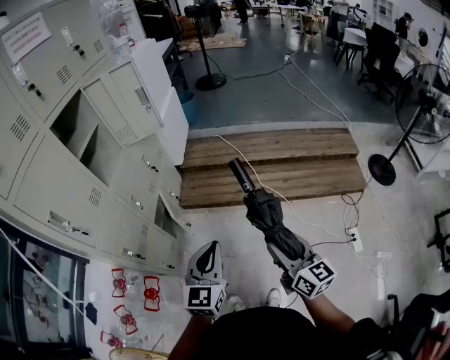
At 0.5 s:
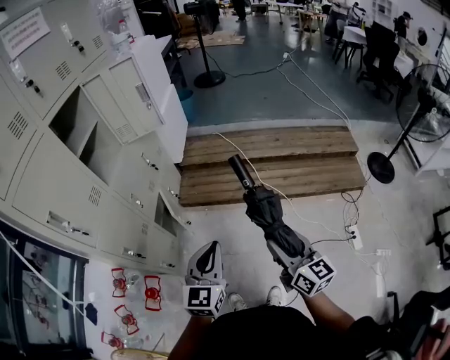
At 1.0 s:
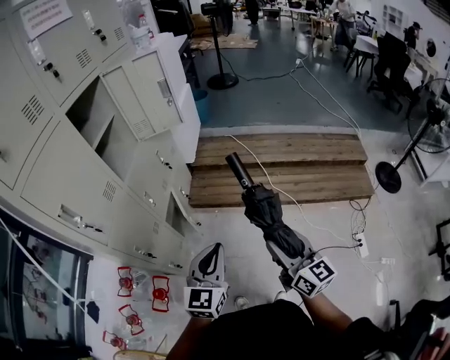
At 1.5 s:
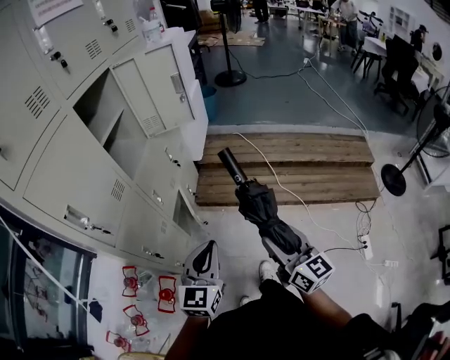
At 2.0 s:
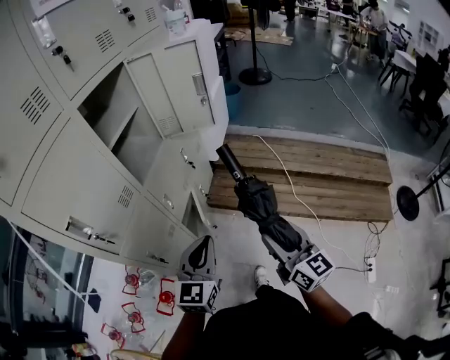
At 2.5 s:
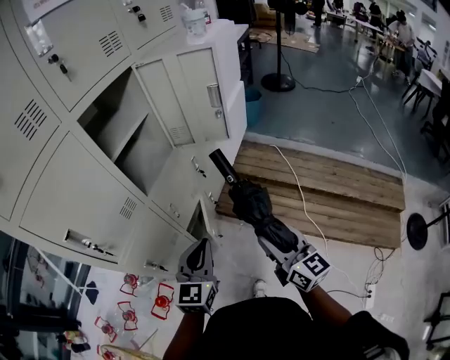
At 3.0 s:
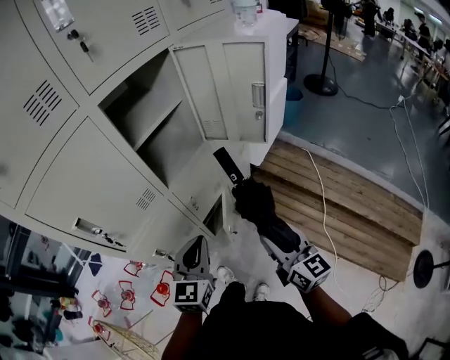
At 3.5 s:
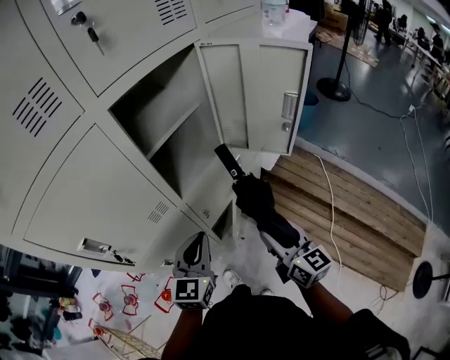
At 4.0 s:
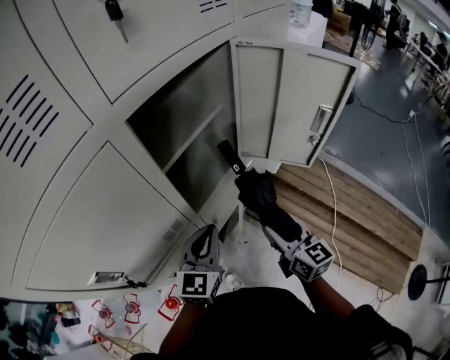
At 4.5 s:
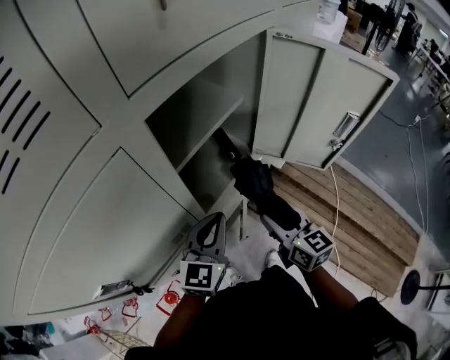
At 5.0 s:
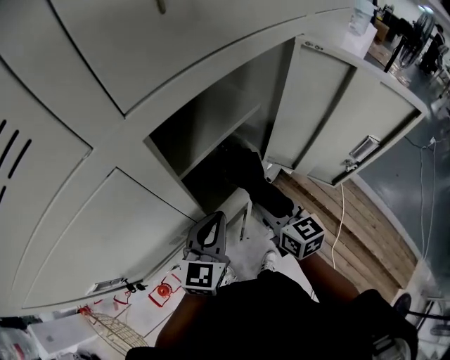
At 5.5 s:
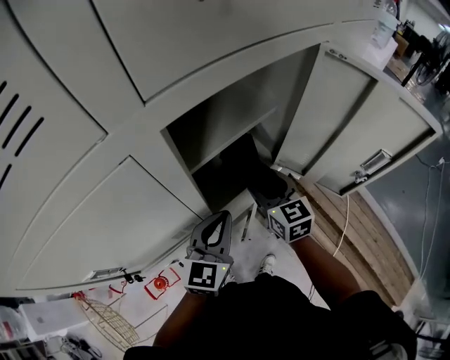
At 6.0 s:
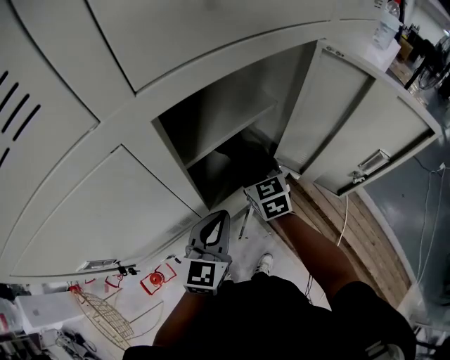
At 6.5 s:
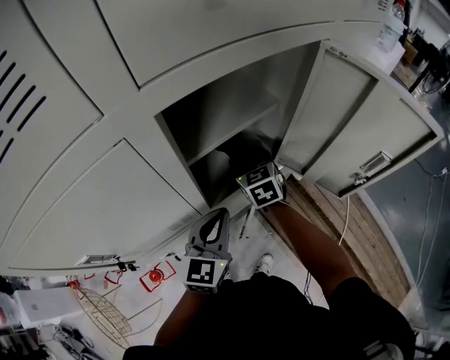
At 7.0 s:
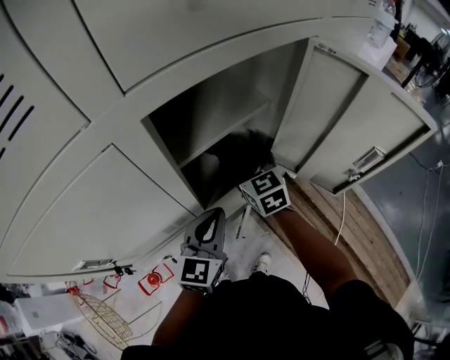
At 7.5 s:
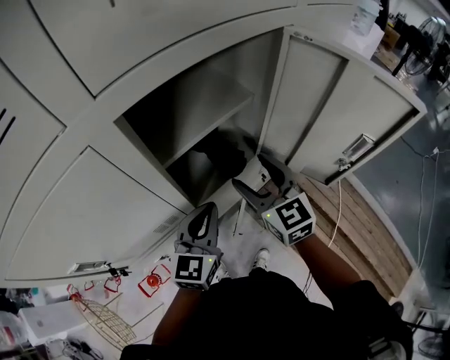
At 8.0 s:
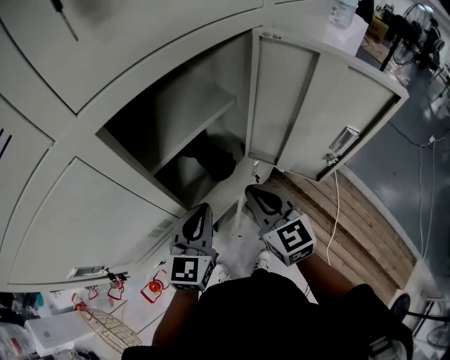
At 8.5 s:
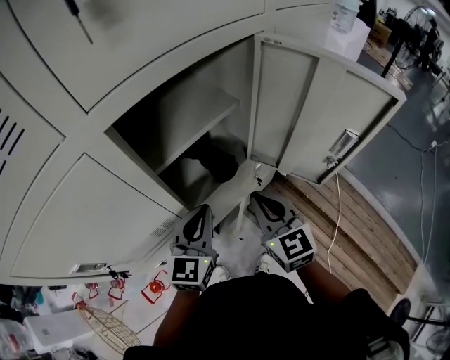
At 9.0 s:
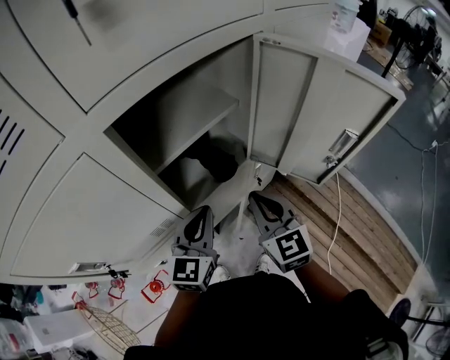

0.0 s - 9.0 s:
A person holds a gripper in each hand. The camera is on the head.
0.0 s - 2.0 s: The left gripper is displaced to the left and forward by roughly 20 cm. The right gripper travels forward and to the left by about 25 cm.
2.0 s - 4.5 s: Both grippers move forward, about 35 cm. The right gripper swivels roughly 30 degrees.
4.5 s - 7.0 s: The right gripper goes about 20 cm forward and to the left, rotates about 30 degrees, and opens.
7.0 s - 9.0 s: The right gripper moves backward and to the right, approximately 15 cm, and closes its fingers.

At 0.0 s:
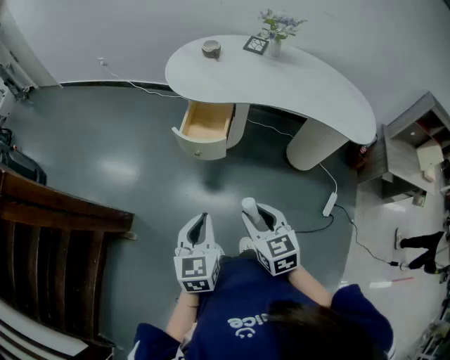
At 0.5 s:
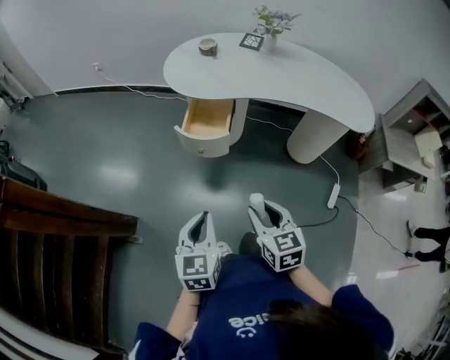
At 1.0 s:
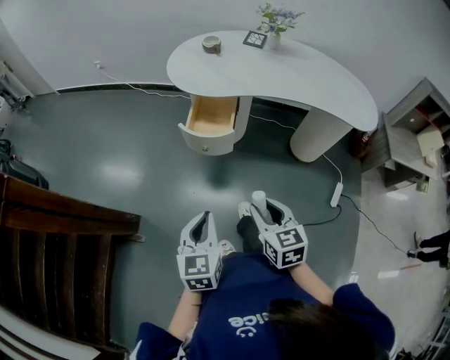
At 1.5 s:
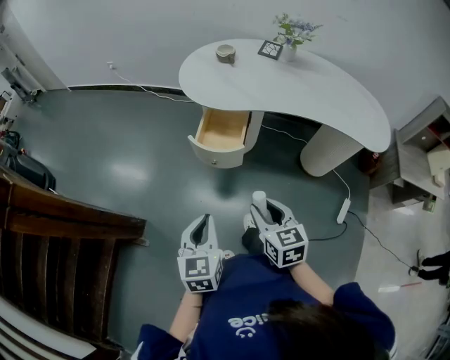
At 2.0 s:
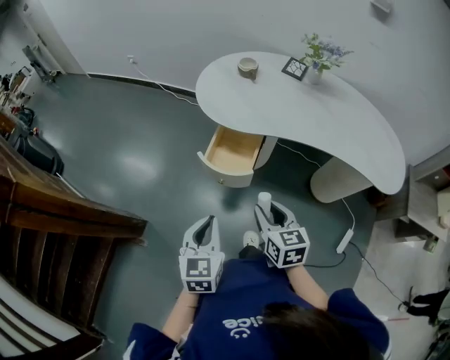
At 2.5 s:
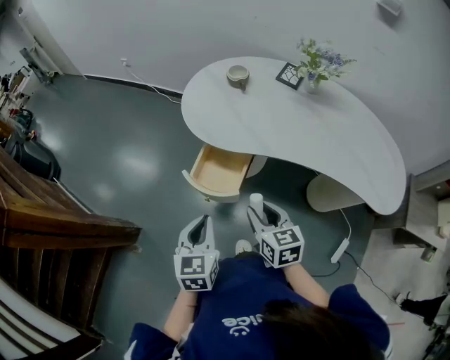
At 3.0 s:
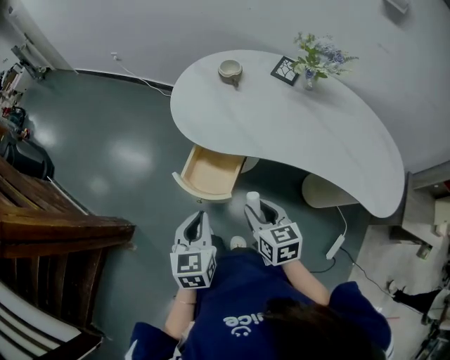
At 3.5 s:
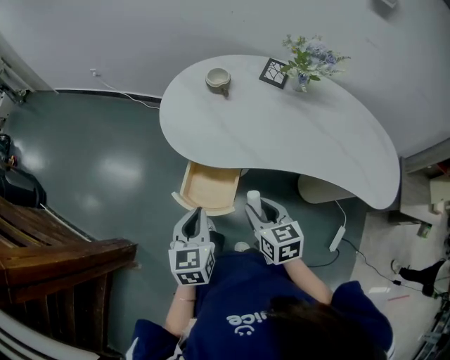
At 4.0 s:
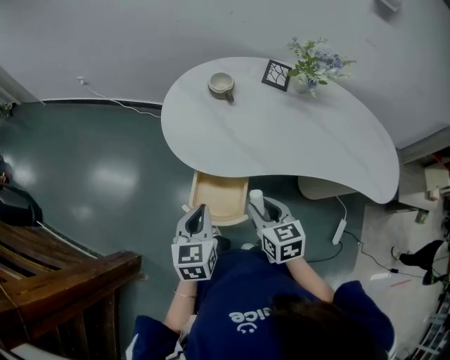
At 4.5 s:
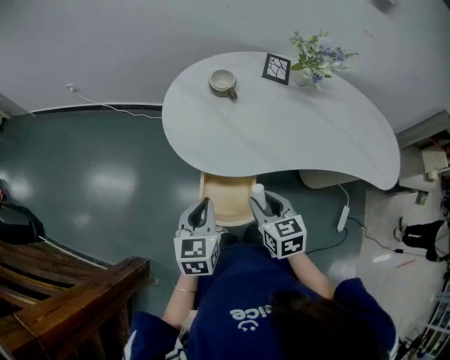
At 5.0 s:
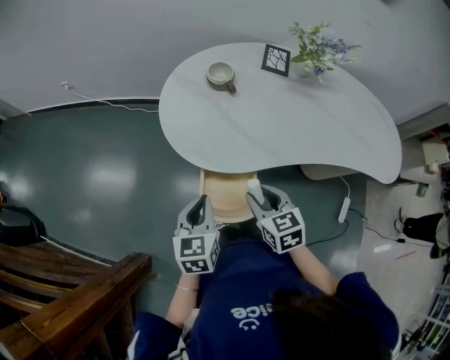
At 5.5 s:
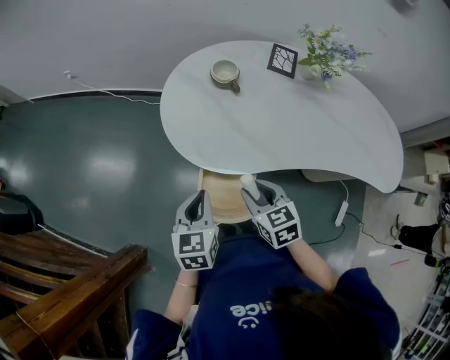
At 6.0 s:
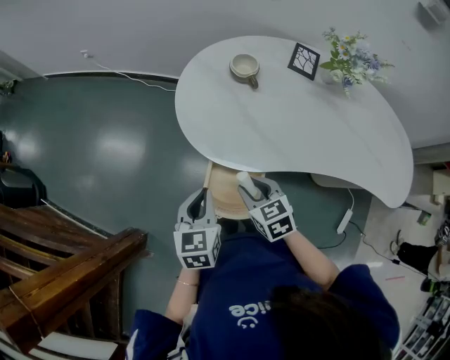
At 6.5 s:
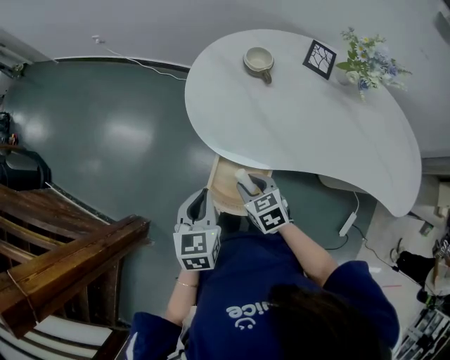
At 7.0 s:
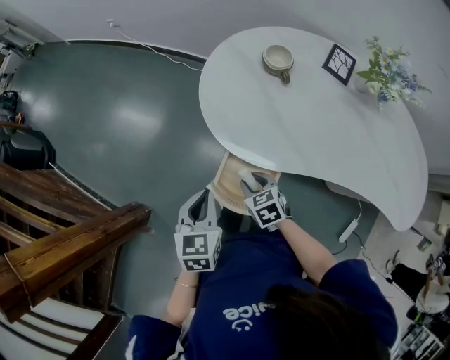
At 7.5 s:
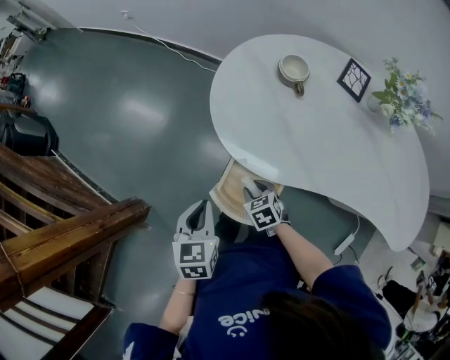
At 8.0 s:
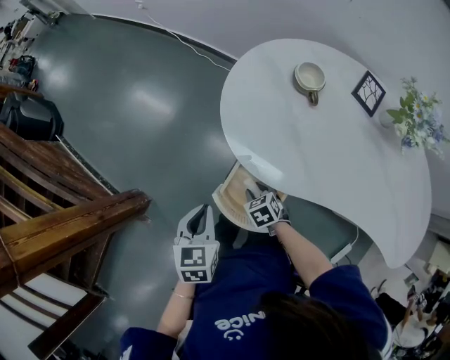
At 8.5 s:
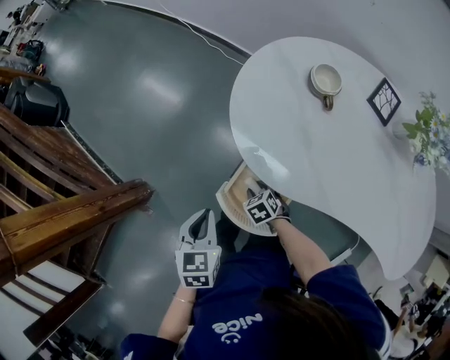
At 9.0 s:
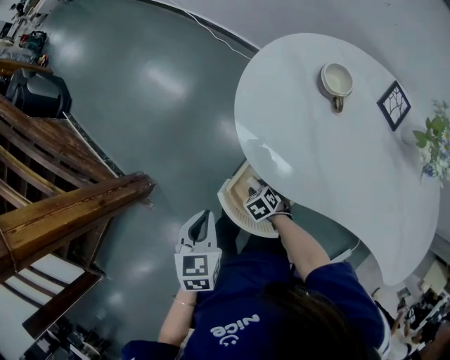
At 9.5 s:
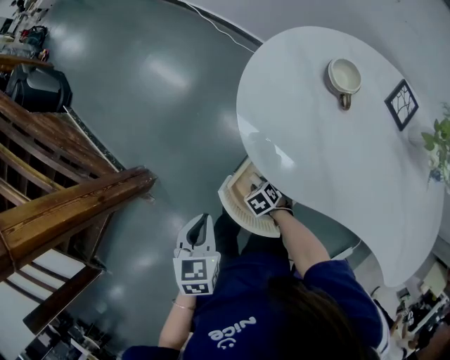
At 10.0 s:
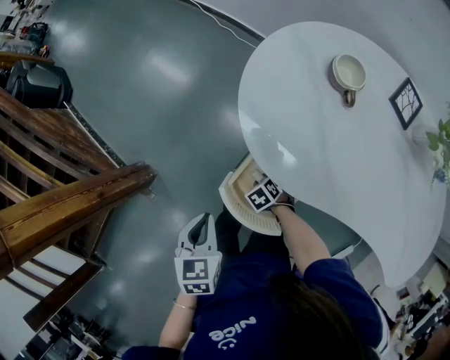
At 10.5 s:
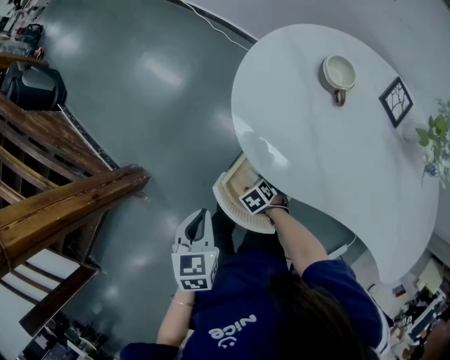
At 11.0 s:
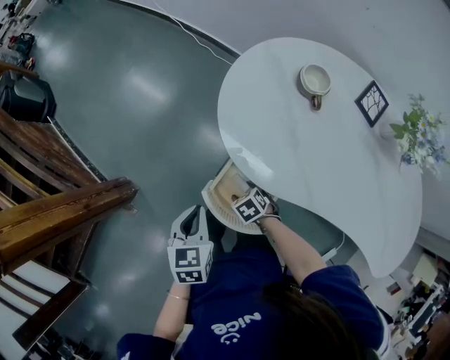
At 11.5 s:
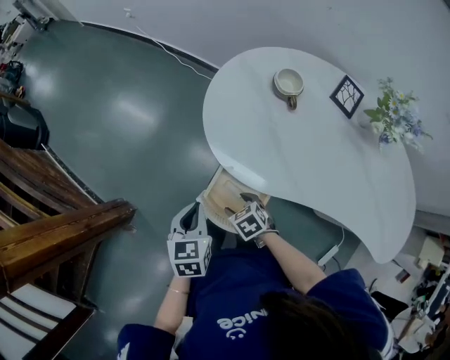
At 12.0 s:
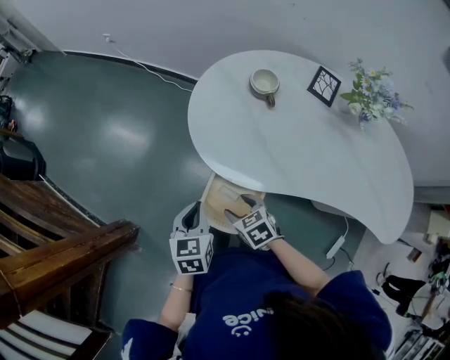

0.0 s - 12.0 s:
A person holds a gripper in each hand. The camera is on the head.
0.0 s - 2.0 s: The two grippers go approximately 15 cm forward.
2.0 s - 4.0 s: Both grippers move forward, roughly 25 cm.
4.0 s - 6.0 s: The right gripper shifts roughly 10 cm to the left and forward. Meanwhile the left gripper moves forward, some 5 cm.
6.0 s - 8.0 s: The right gripper travels downward by approximately 15 cm, and changes its angle by approximately 30 degrees. The left gripper shifts some 5 cm to the left.
8.0 s - 10.0 s: The right gripper goes roughly 10 cm downward, and rotates about 20 degrees.
10.0 s - 12.0 s: The right gripper moves upward, approximately 20 cm, changes its angle by roughly 30 degrees, and opens up; the left gripper shifts by about 10 cm.

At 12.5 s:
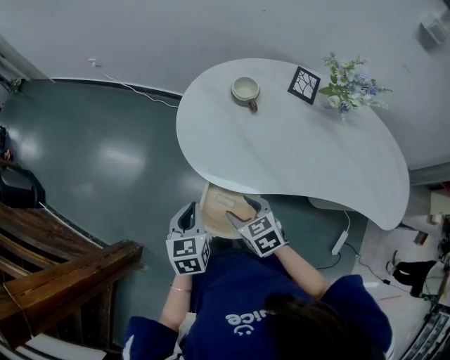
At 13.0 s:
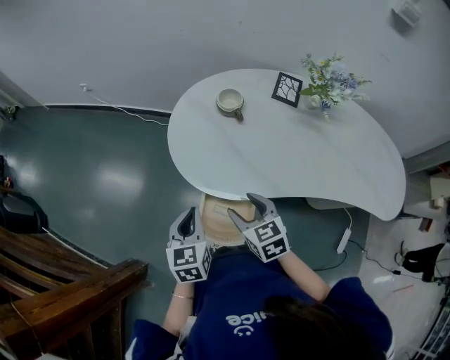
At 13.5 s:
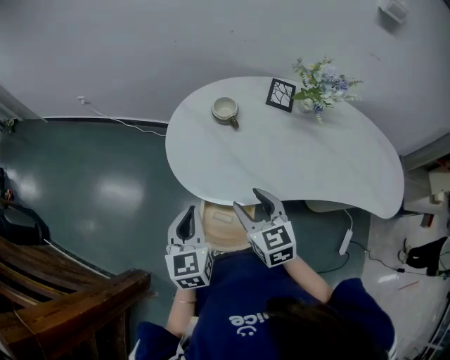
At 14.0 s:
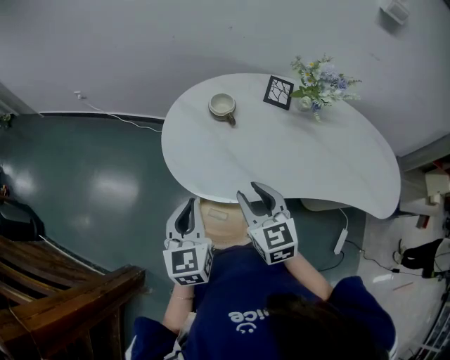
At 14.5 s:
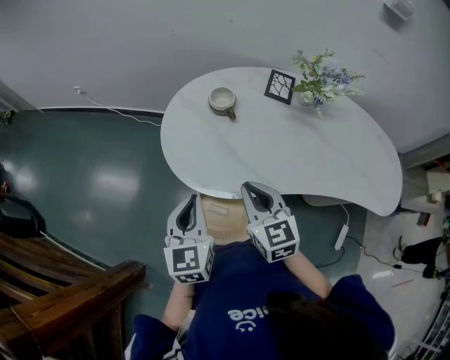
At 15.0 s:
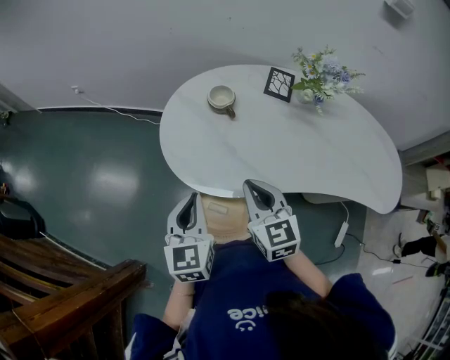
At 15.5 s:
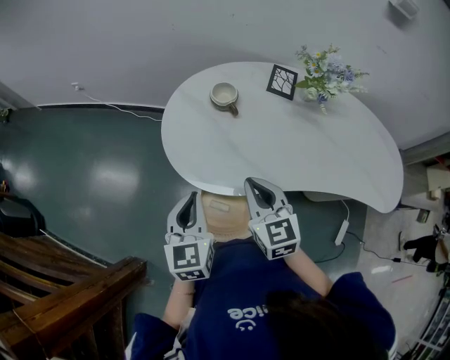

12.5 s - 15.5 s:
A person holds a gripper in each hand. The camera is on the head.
12.5 s - 14.0 s: The right gripper goes roughly 15 cm upward and to the right, changes its angle by about 30 degrees, and closes; the left gripper moves upward, roughly 10 cm.
14.0 s - 15.5 s: The right gripper closes.

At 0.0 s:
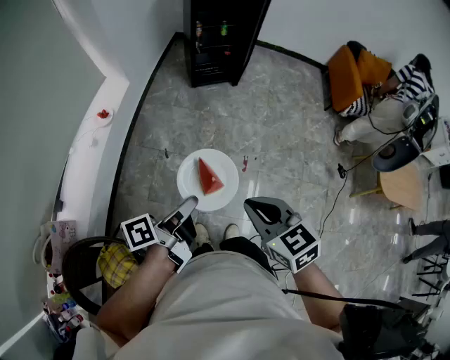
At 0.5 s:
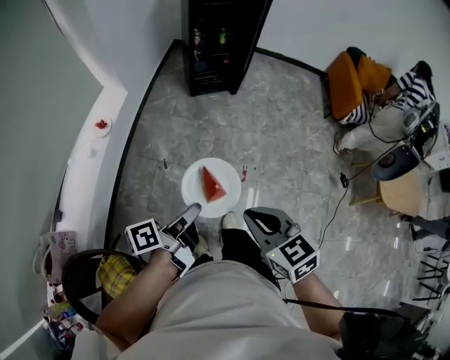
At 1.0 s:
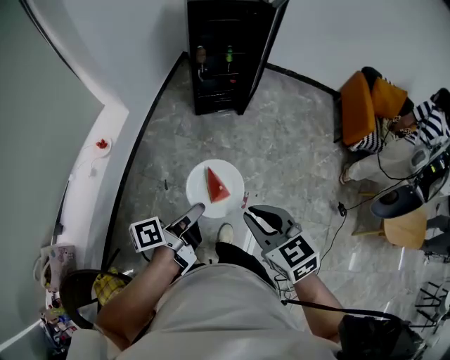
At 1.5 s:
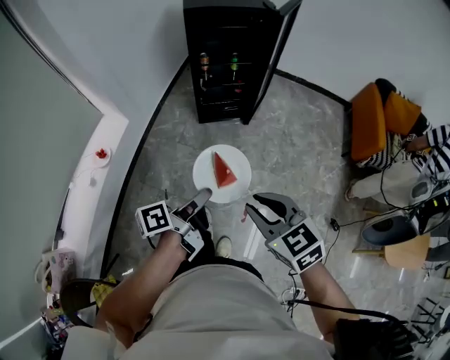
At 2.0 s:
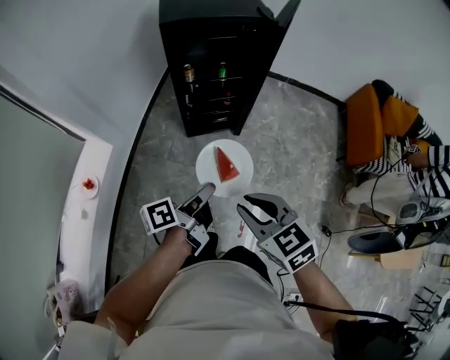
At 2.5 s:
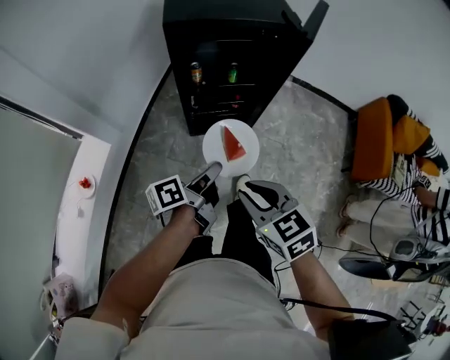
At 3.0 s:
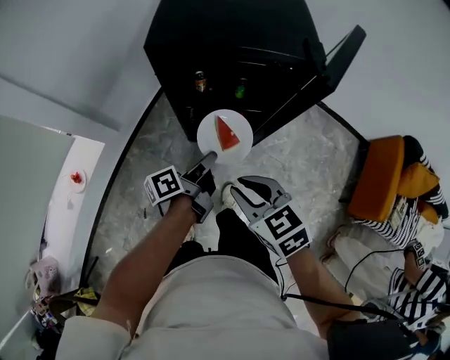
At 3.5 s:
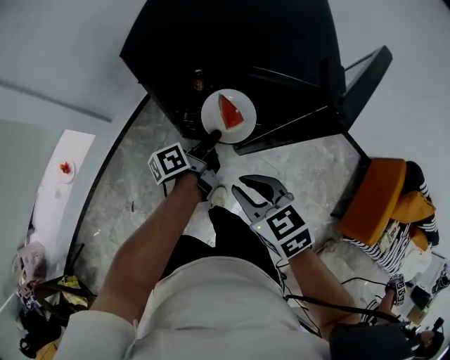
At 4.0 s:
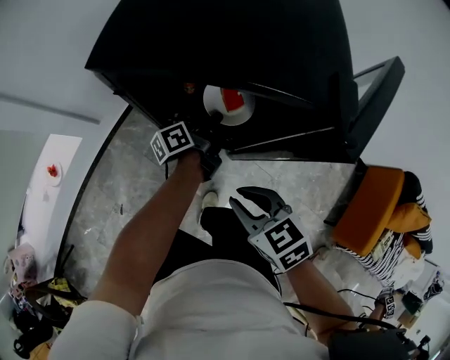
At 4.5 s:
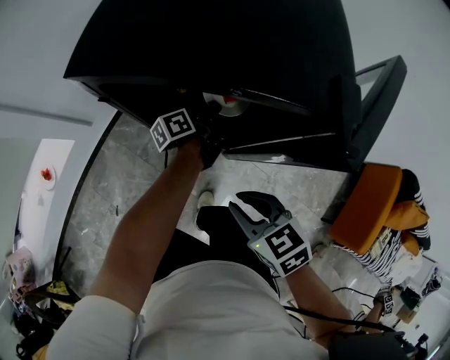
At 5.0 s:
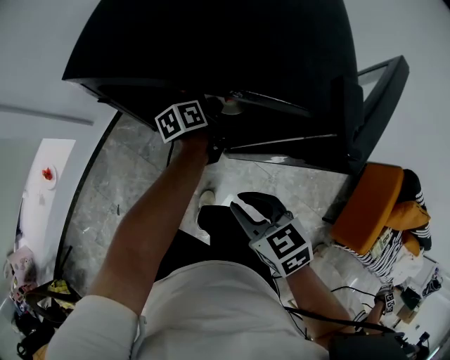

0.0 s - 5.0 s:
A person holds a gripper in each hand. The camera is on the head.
0.0 s - 2.5 s: The pair of grippers is taken forward, roughly 70 cm.
2.5 s - 5.0 s: The left gripper goes approximately 50 cm forward, to the right and downward, and swivels about 30 degrees. The right gripper is displaced forward, to the right and downward by approximately 30 cm, and swivels approximately 20 degrees.
